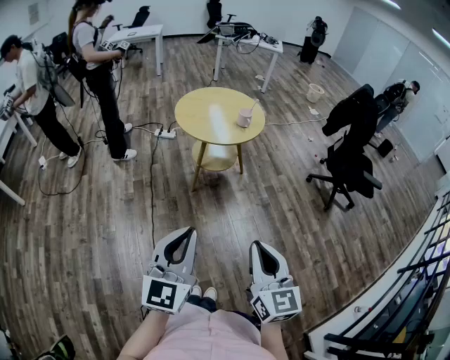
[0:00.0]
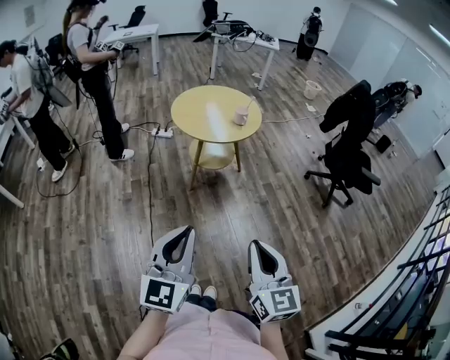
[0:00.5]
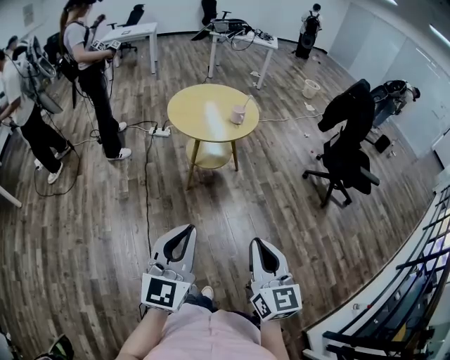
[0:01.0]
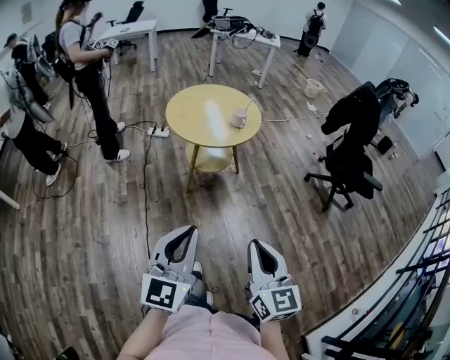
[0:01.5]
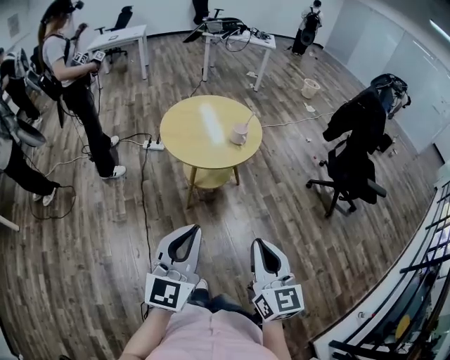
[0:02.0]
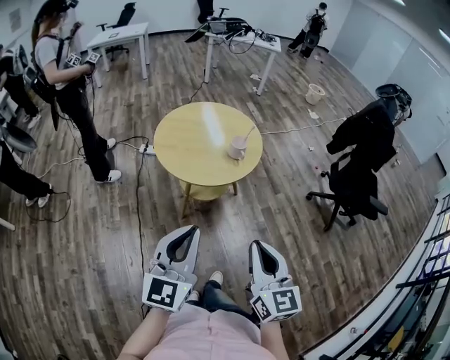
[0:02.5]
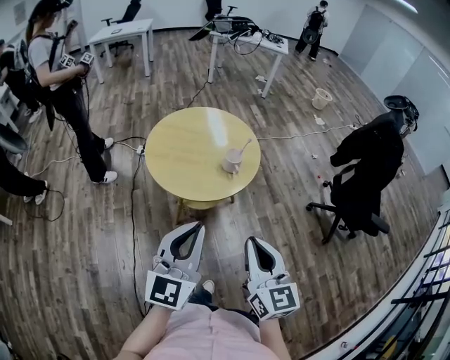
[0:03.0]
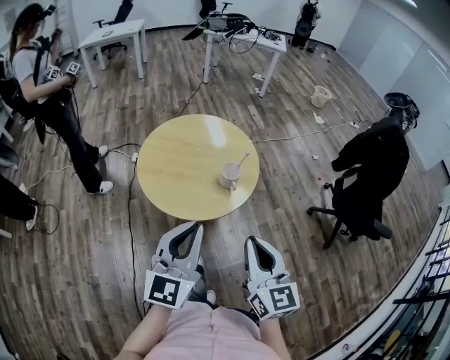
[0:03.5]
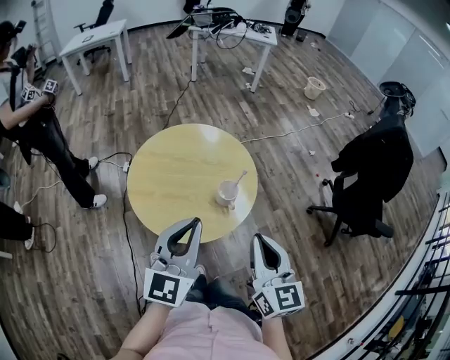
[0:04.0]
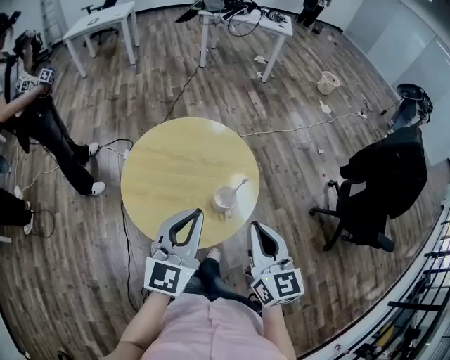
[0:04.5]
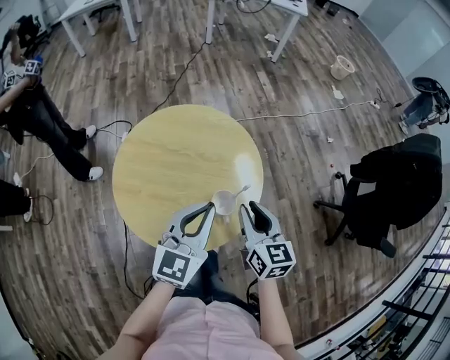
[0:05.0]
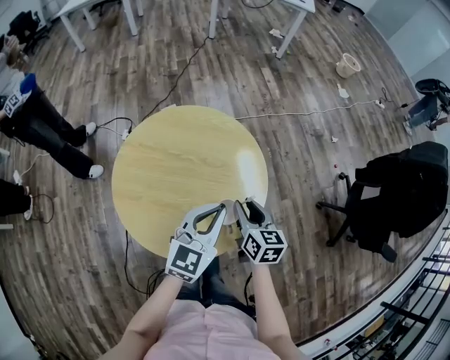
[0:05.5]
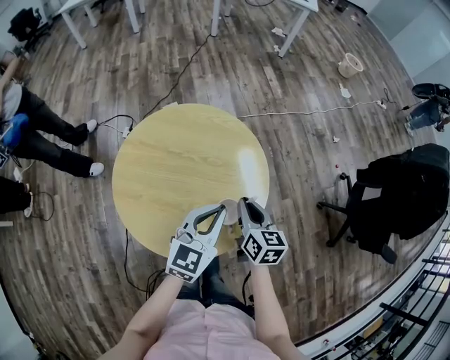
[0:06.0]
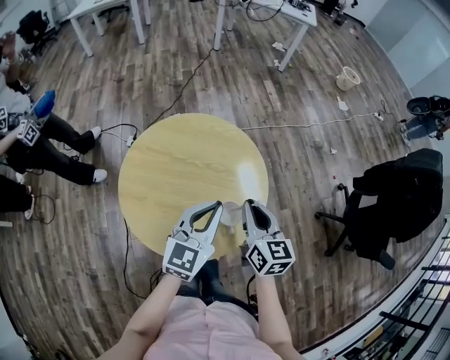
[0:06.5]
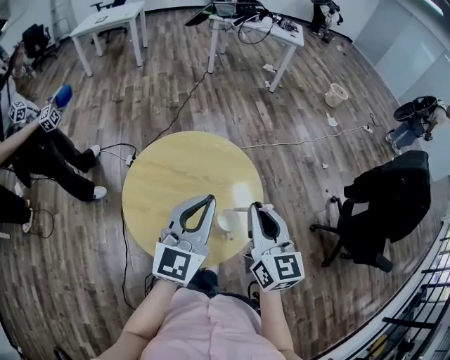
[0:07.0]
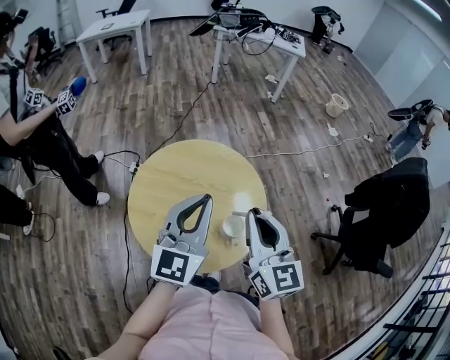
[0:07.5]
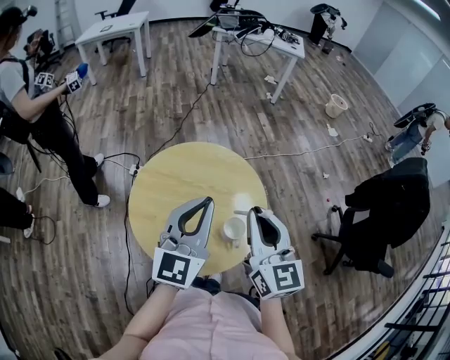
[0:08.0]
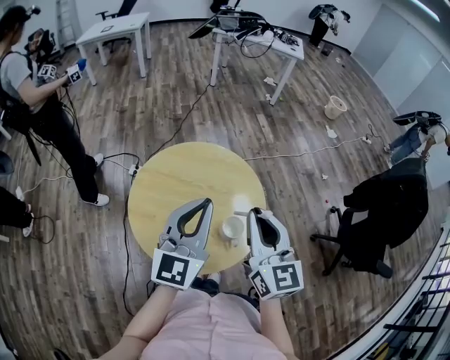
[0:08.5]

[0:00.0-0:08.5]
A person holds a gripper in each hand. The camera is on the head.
0:00.0 to 0:02.0: The grippers both shift forward by roughly 20 cm.
0:02.0 to 0:04.0: Both grippers are carried forward, some 40 cm.
0:04.0 to 0:06.5: Both grippers move forward and downward, about 25 cm. The right gripper opens, then closes again.
0:06.5 to 0:08.5: Both grippers move upward, some 15 cm. The right gripper turns by approximately 20 degrees. The left gripper rotates approximately 20 degrees.

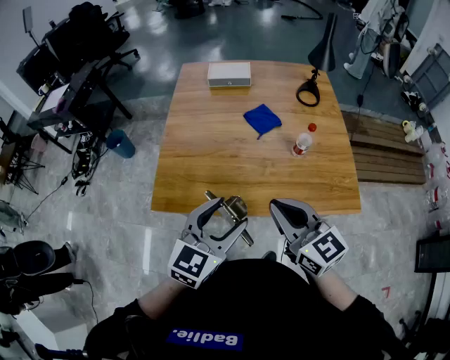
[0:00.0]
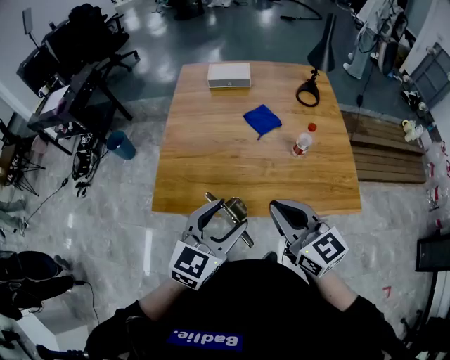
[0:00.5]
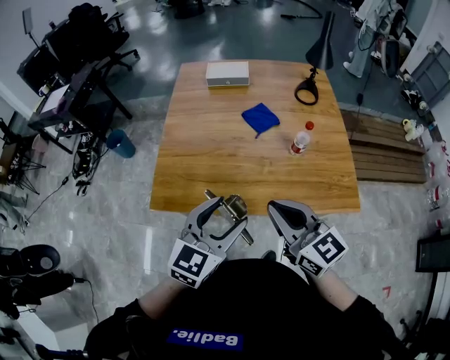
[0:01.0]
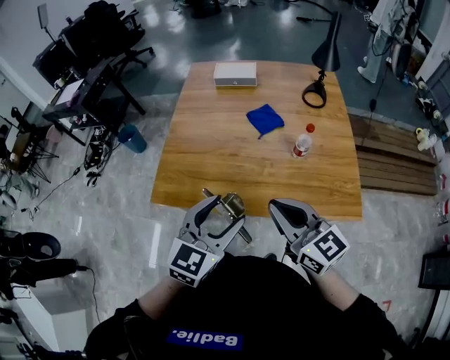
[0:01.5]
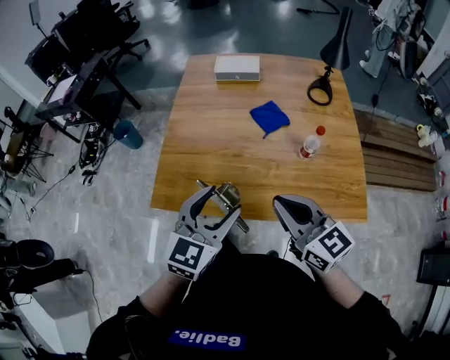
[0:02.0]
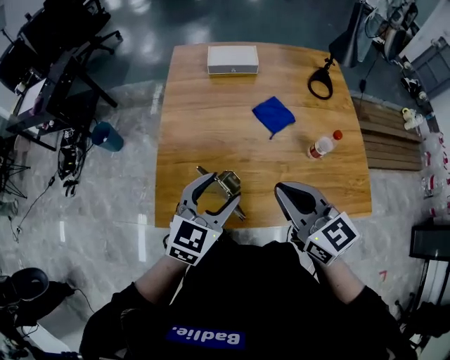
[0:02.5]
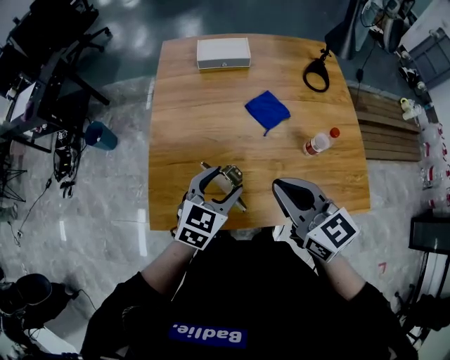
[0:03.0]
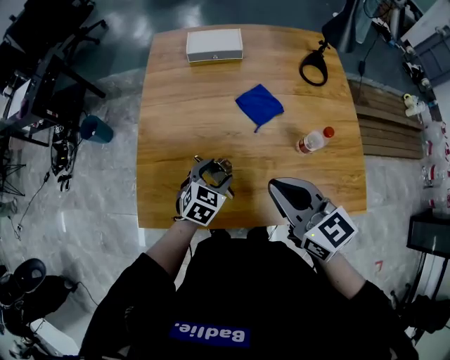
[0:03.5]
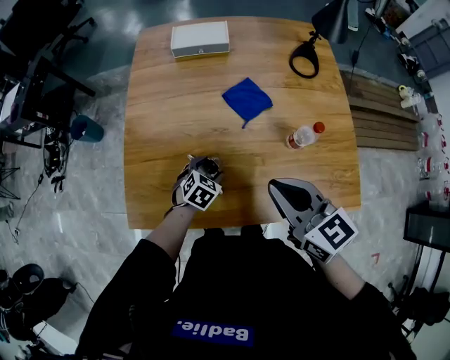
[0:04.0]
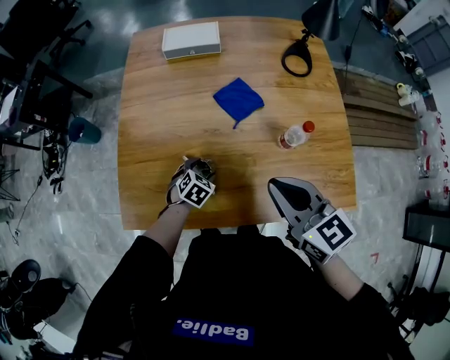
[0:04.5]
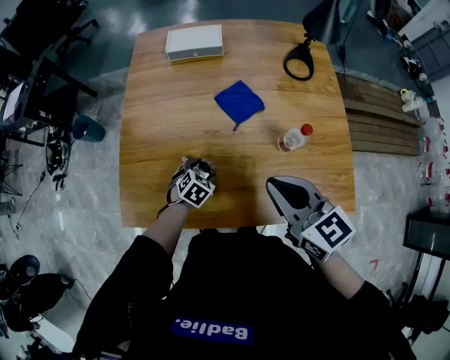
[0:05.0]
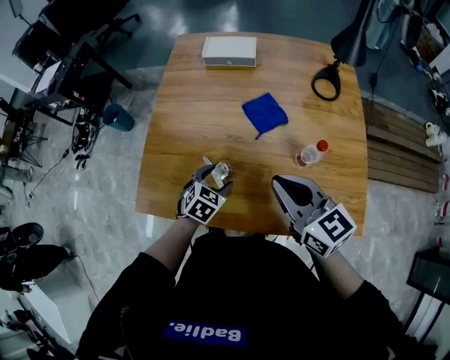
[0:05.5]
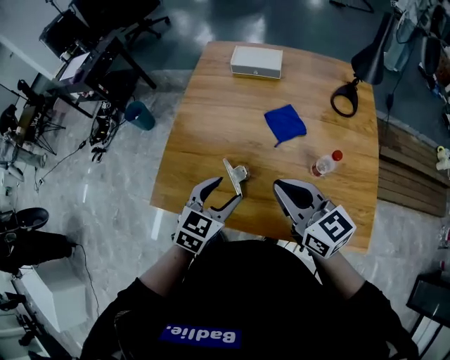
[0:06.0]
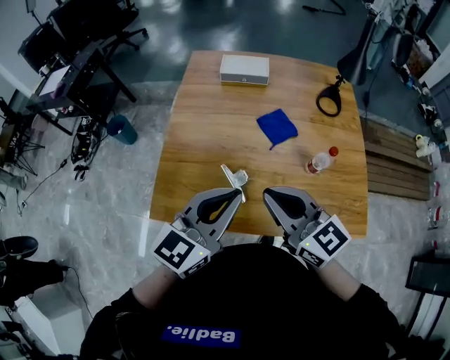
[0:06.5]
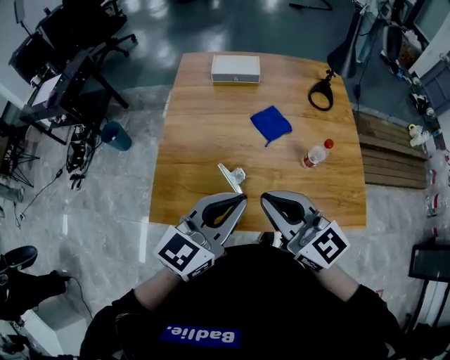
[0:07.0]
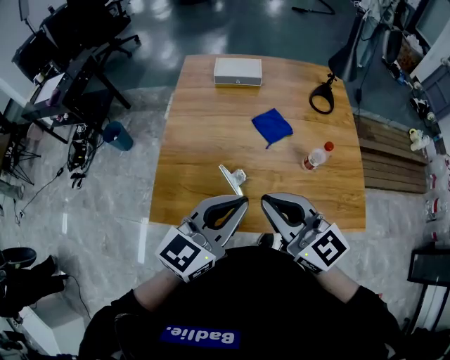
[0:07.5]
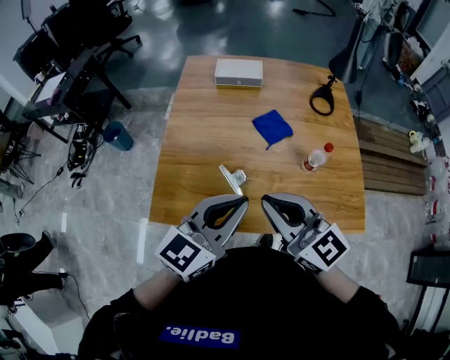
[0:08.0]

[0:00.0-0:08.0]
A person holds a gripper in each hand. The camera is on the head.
0:00.0 to 0:02.0: The right gripper ends up about 5 cm from where it was. The left gripper moves forward, some 5 cm.
0:02.0 to 0:04.0: The left gripper heads downward and forward, covering roughly 40 cm, and tips its fingers downward by some 40 degrees, while the right gripper heads forward, covering about 15 cm.
0:04.0 to 0:06.0: The left gripper goes approximately 25 cm upward and backward, and changes its angle by roughly 30 degrees.
0:06.0 to 0:08.0: The left gripper is displaced upward and backward by some 20 cm, turns by approximately 30 degrees, and closes up. Meanwhile the right gripper shifts some 15 cm to the left, upward and backward.

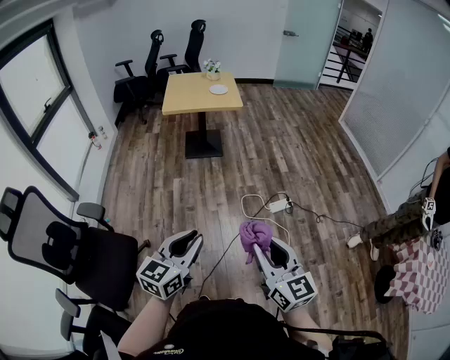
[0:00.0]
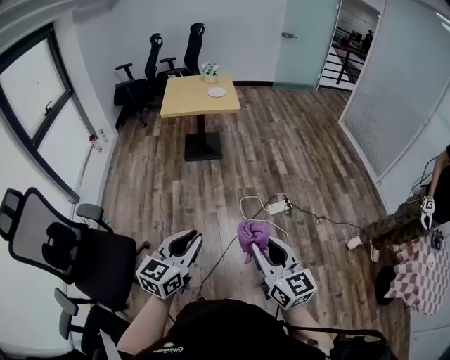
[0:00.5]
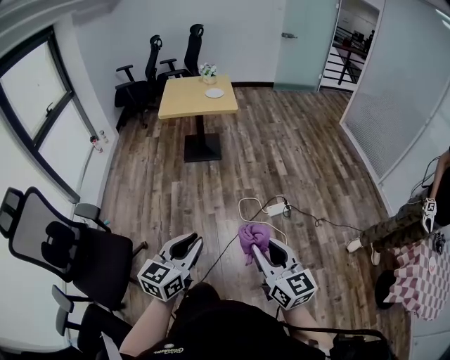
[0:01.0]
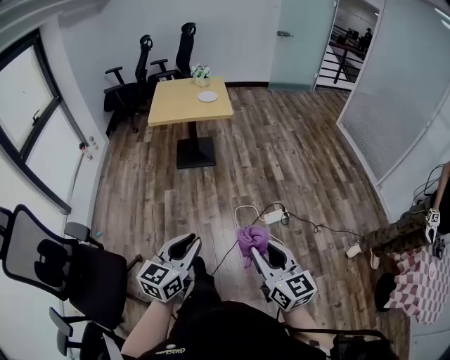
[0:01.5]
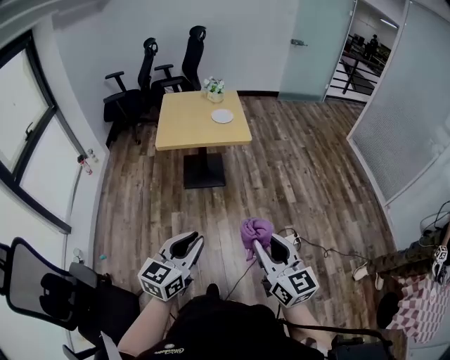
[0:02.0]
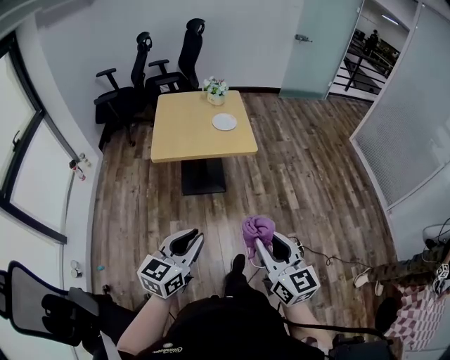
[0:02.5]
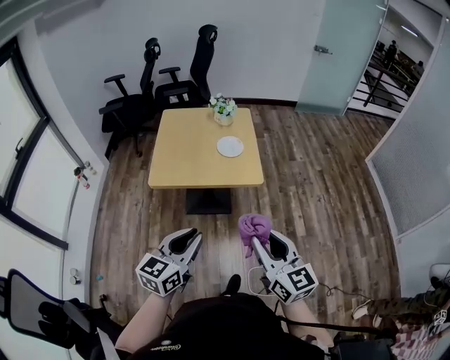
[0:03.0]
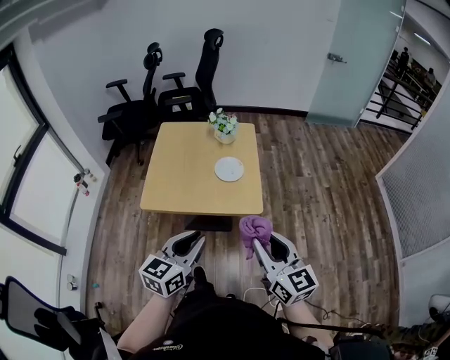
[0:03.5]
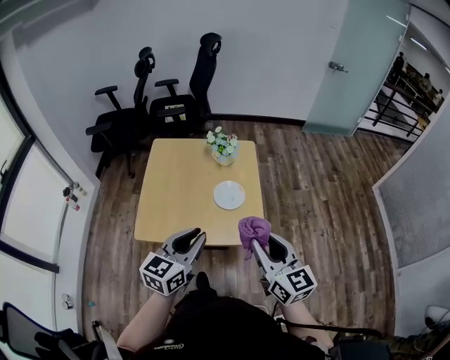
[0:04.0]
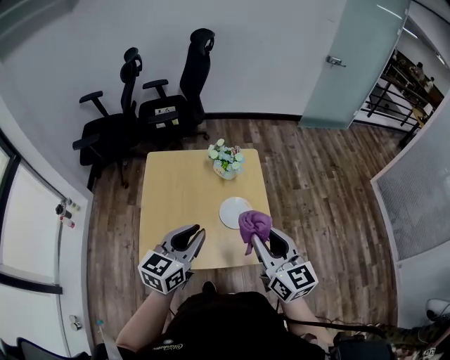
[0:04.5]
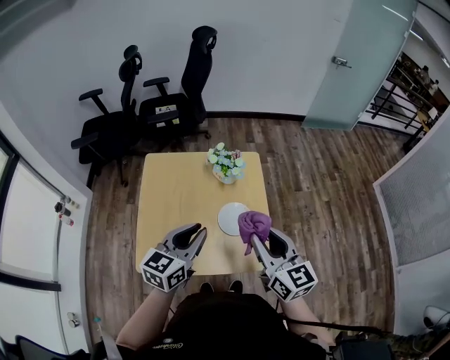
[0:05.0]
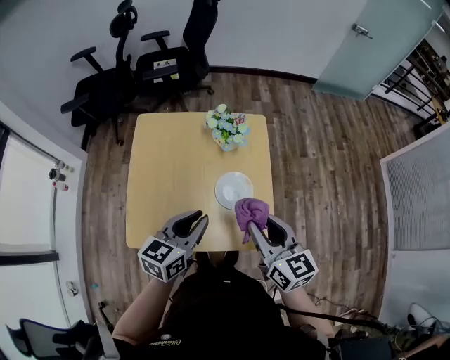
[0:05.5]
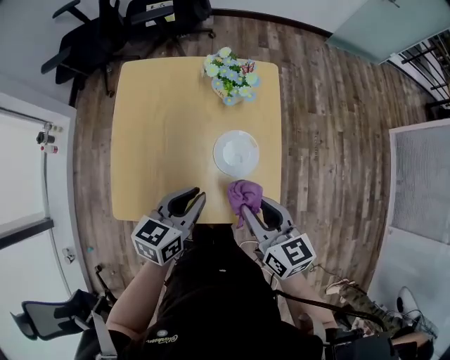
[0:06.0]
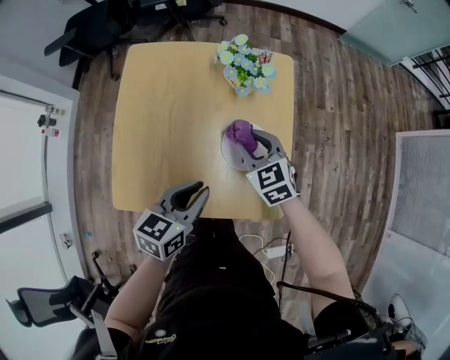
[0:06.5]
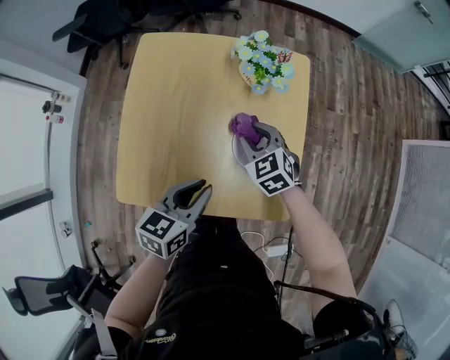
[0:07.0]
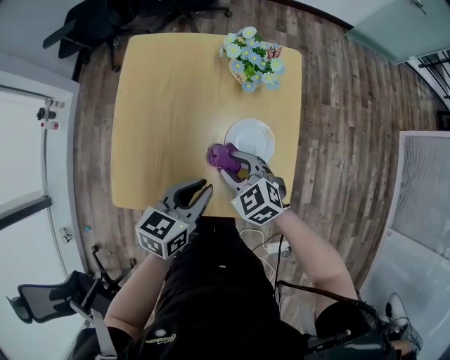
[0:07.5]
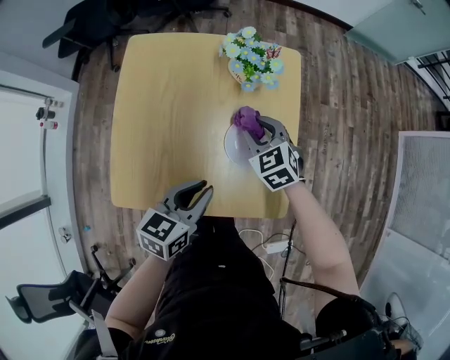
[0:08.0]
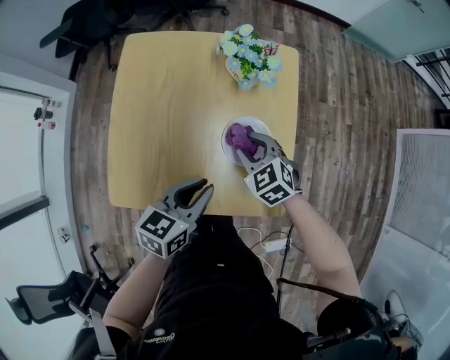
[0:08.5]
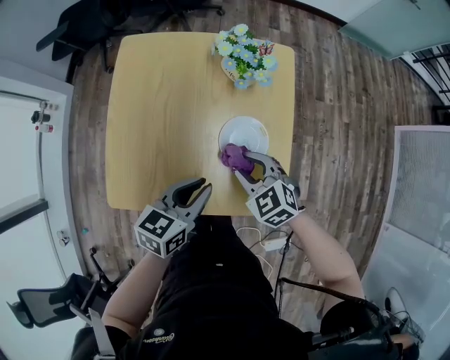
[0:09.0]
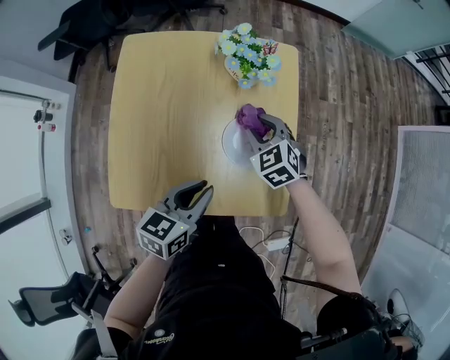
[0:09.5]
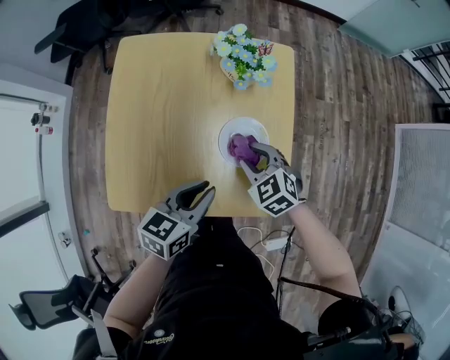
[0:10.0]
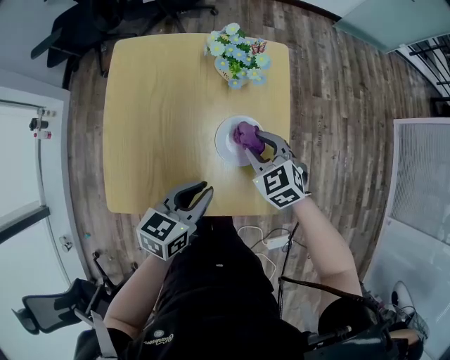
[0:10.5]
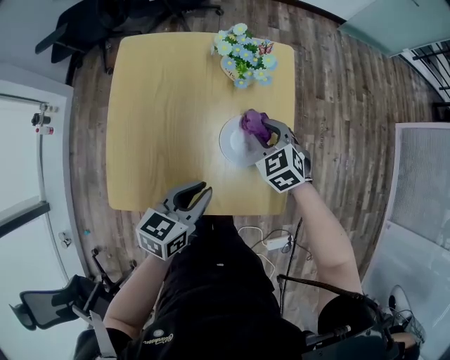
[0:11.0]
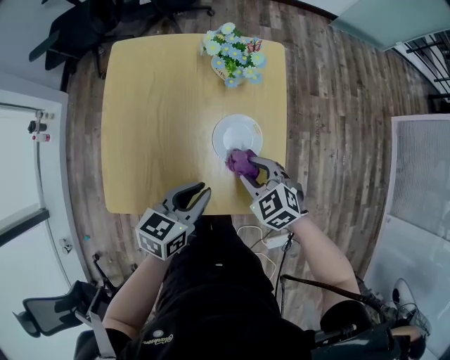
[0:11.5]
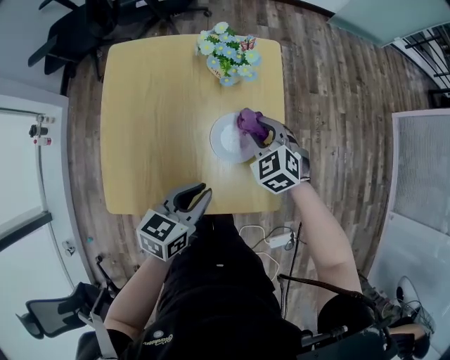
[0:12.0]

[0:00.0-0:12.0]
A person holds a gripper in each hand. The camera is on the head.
0:00.0 to 0:02.0: Both grippers move forward, some 35 cm.
0:02.0 to 0:04.0: The two grippers travel together, forward, about 60 cm.
0:04.0 to 0:06.0: Both grippers move forward and downward, about 20 cm. The right gripper changes its angle by some 20 degrees. Meanwhile the left gripper changes its angle by about 20 degrees.
0:06.0 to 0:08.0: The right gripper swings forward and backward, roughly 15 cm each way, with 2 reversals, and turns by about 40 degrees.
0:08.0 to 0:10.0: The right gripper goes forward and backward, roughly 10 cm each way, reversing 2 times.
0:10.0 to 0:12.0: The right gripper swings forward and backward, roughly 10 cm each way, with 2 reversals.
